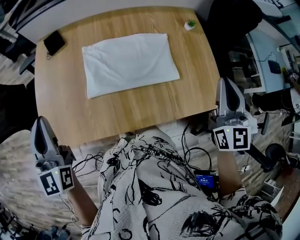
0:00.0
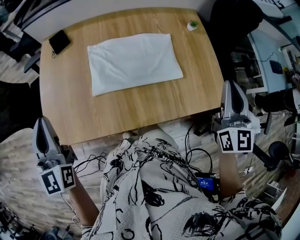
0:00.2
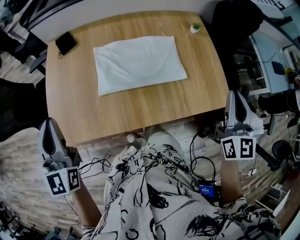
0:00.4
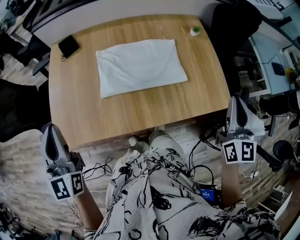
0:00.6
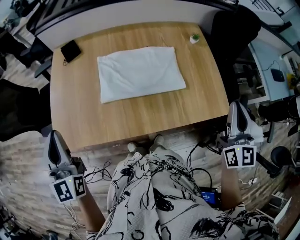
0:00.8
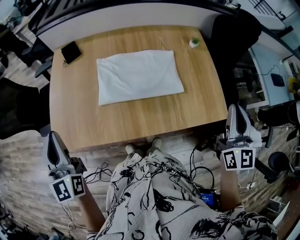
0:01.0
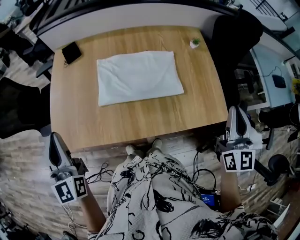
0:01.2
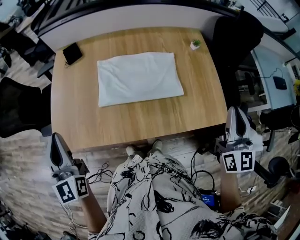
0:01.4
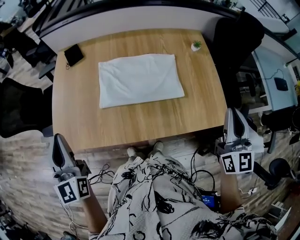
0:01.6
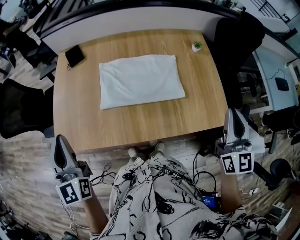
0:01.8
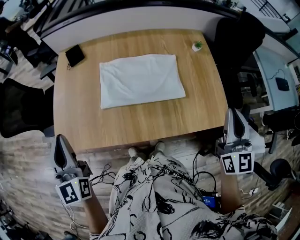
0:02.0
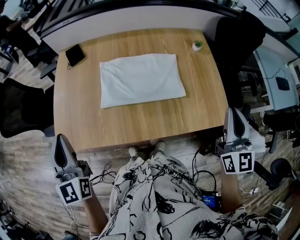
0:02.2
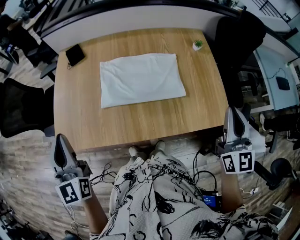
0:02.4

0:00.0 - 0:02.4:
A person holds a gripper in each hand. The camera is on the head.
0:00.0 - 0:01.2: The grippers both shift backward by roughly 10 cm.
0:01.2 - 0:02.4: The grippers stay close to where they were, moving slightly.

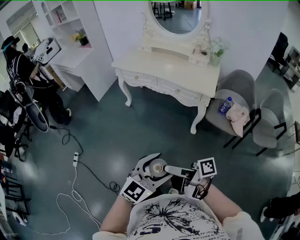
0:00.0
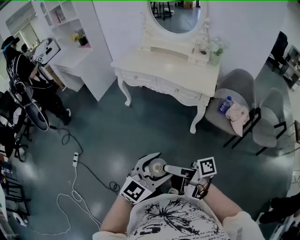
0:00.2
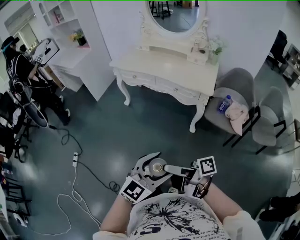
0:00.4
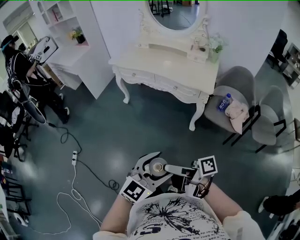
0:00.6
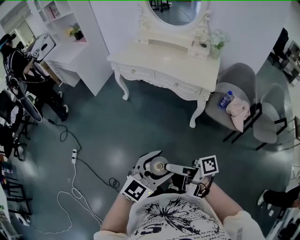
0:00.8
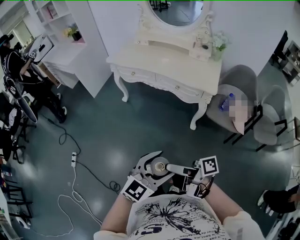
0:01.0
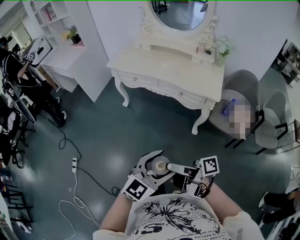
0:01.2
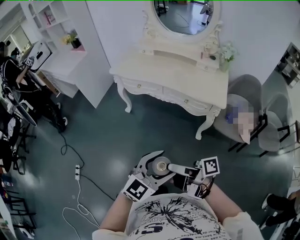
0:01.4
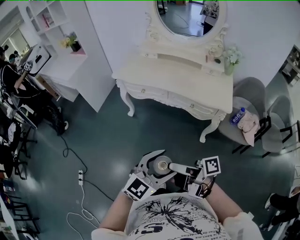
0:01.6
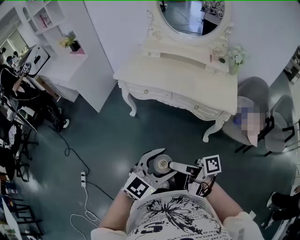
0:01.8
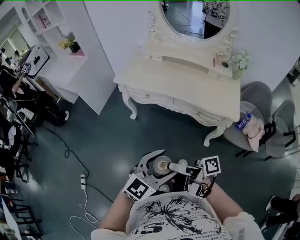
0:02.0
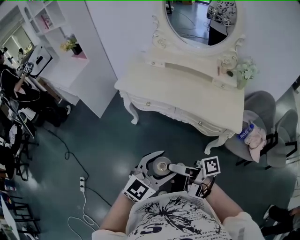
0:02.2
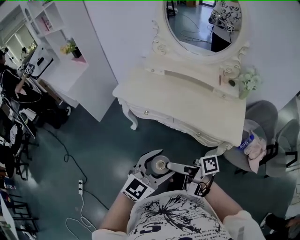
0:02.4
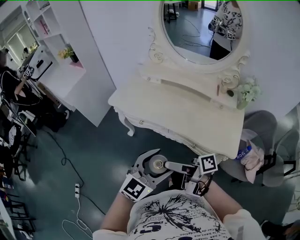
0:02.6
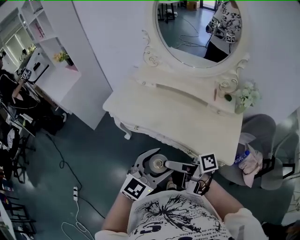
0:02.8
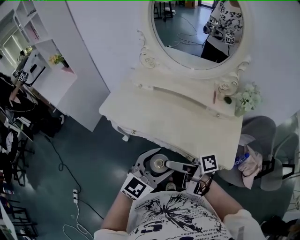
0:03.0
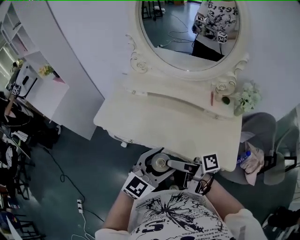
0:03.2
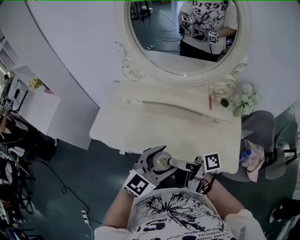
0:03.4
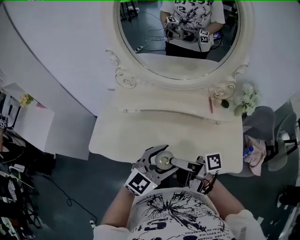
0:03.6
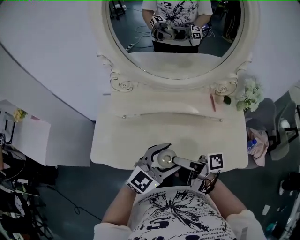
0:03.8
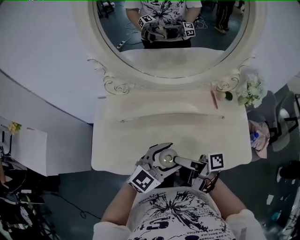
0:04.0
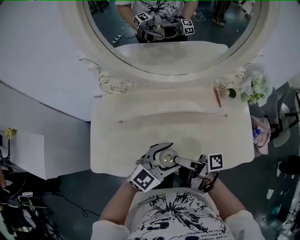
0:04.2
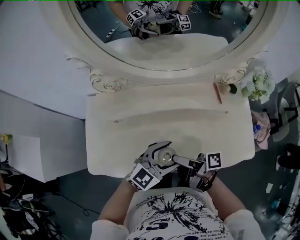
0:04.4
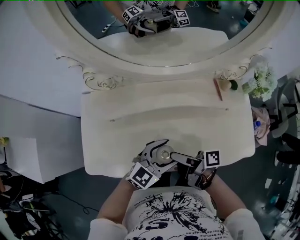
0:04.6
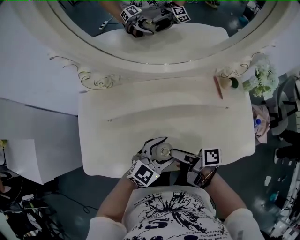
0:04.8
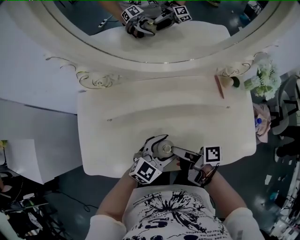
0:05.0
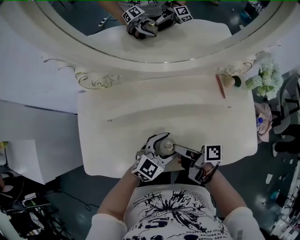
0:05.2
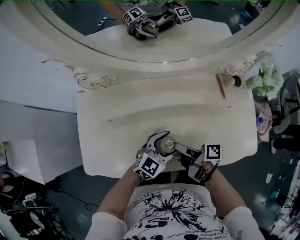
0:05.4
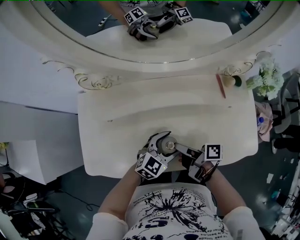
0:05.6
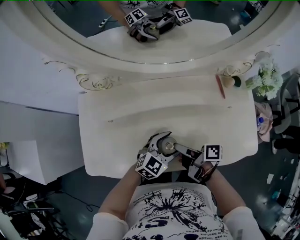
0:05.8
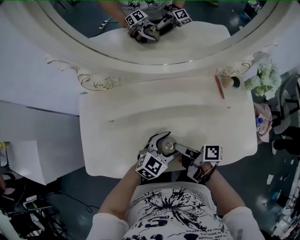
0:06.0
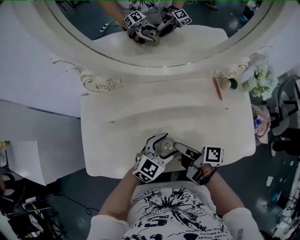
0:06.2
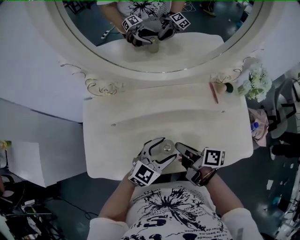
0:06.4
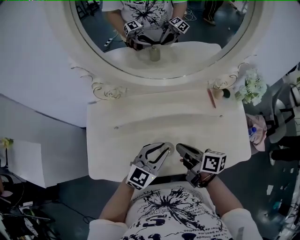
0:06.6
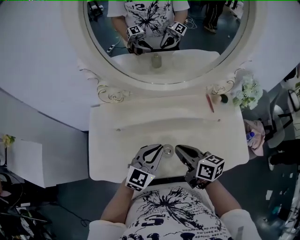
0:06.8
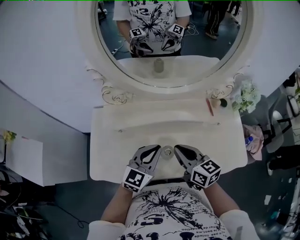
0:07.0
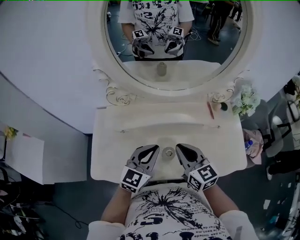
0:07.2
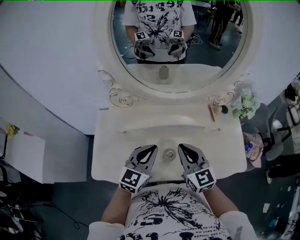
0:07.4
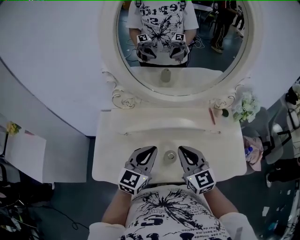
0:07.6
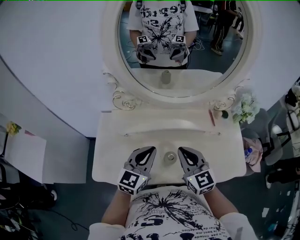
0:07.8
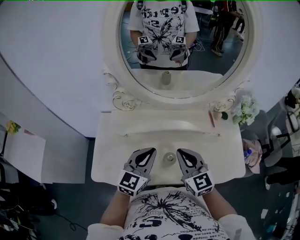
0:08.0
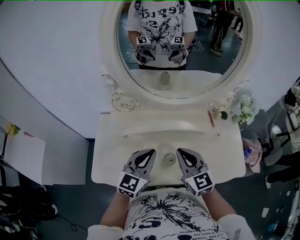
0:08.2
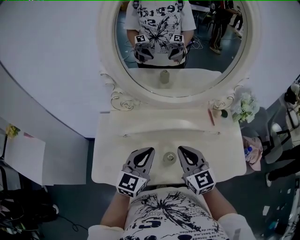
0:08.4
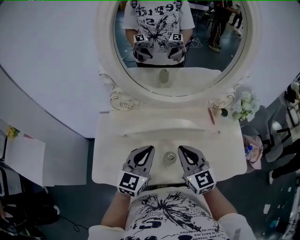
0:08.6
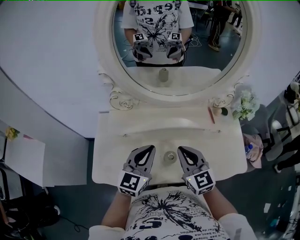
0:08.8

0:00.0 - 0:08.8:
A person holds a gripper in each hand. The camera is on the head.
0:00.0 - 0:01.4: The left gripper changes place by roughly 15 cm.
0:01.4 - 0:03.0: The left gripper changes place by about 40 cm.
0:03.0 - 0:04.4: The left gripper ends up some 30 cm from where it was, and rotates approximately 40 degrees.
0:04.4 - 0:05.8: The left gripper travels downward by approximately 10 cm.
0:05.8 - 0:07.4: The left gripper is displaced upward by some 20 cm, changes its angle by roughly 30 degrees, and closes up.

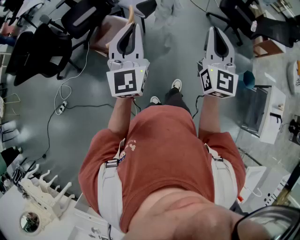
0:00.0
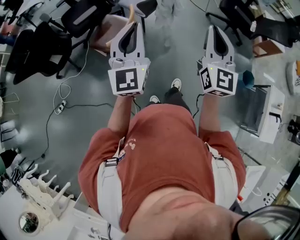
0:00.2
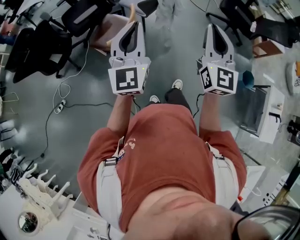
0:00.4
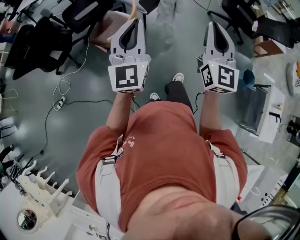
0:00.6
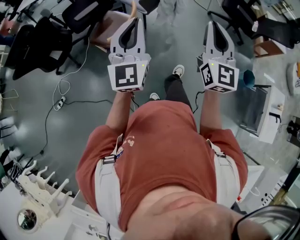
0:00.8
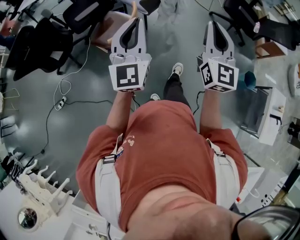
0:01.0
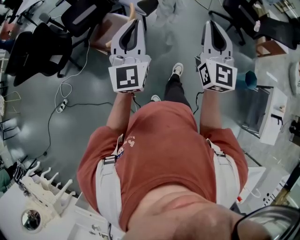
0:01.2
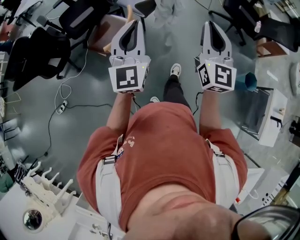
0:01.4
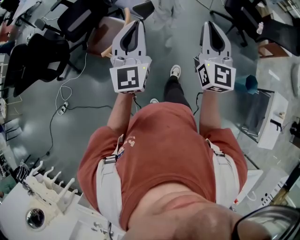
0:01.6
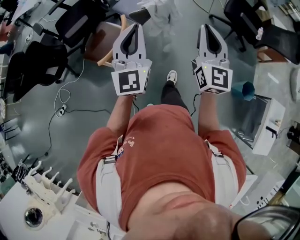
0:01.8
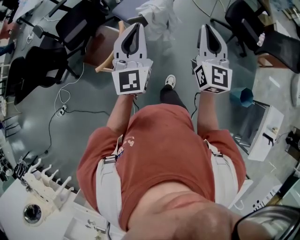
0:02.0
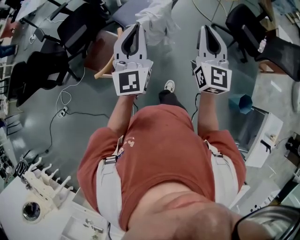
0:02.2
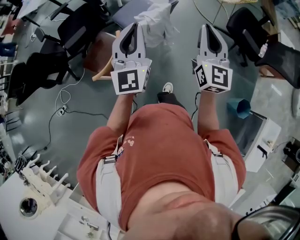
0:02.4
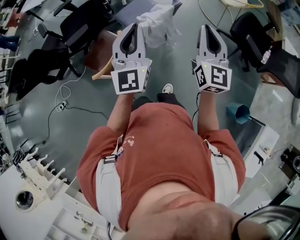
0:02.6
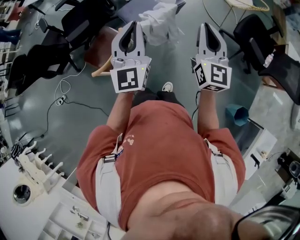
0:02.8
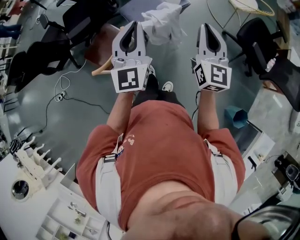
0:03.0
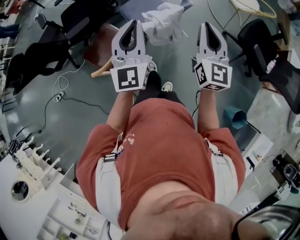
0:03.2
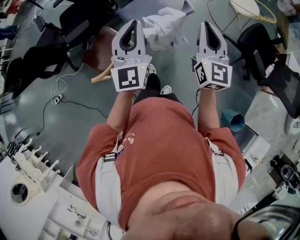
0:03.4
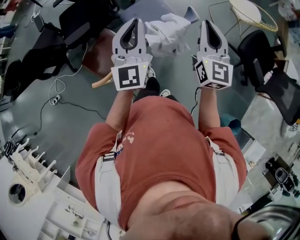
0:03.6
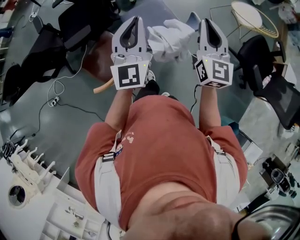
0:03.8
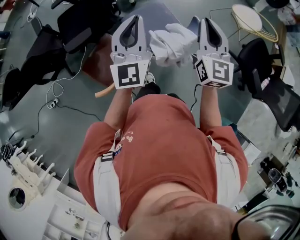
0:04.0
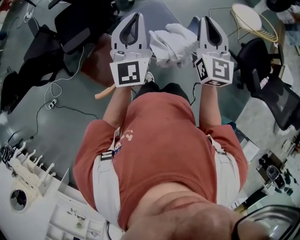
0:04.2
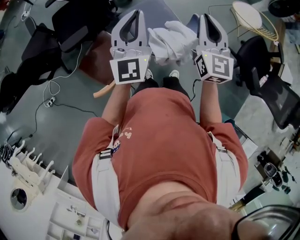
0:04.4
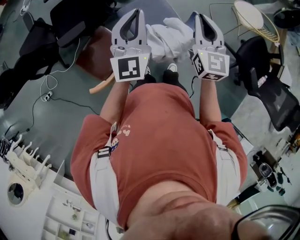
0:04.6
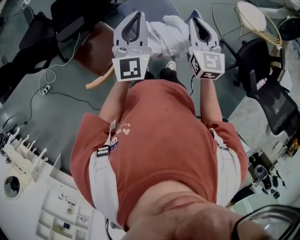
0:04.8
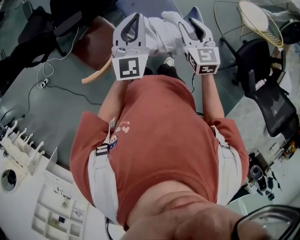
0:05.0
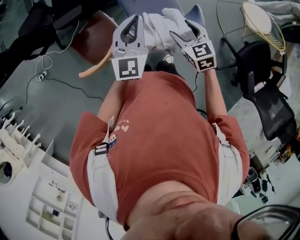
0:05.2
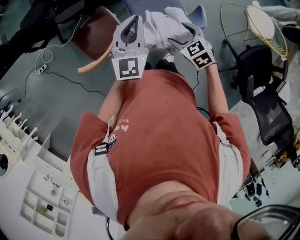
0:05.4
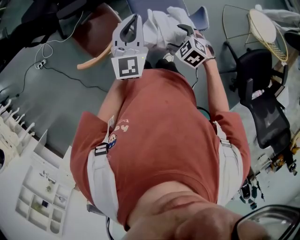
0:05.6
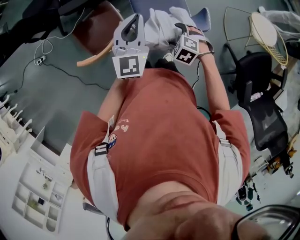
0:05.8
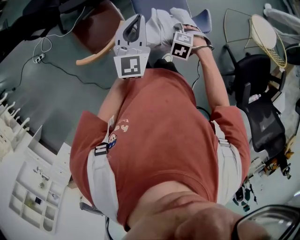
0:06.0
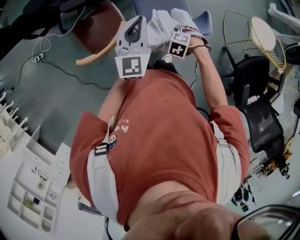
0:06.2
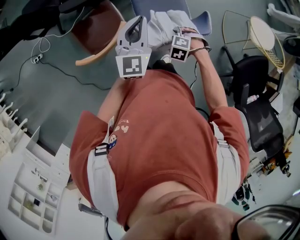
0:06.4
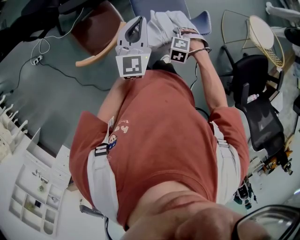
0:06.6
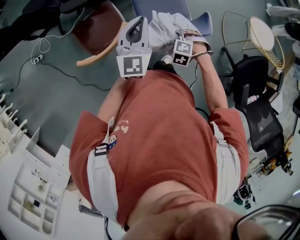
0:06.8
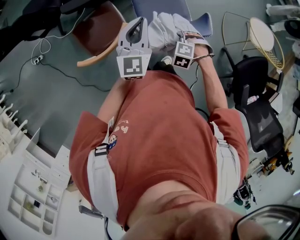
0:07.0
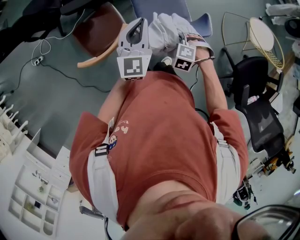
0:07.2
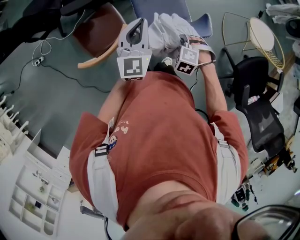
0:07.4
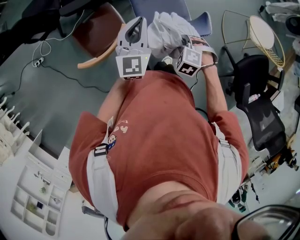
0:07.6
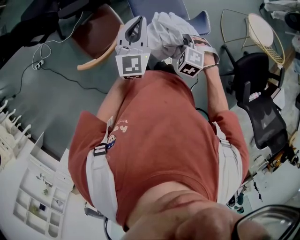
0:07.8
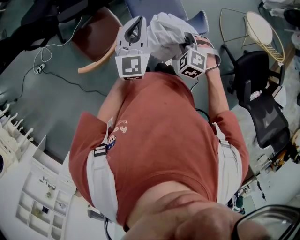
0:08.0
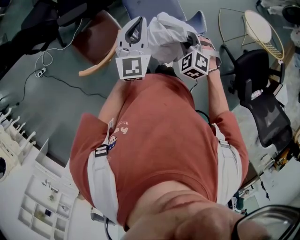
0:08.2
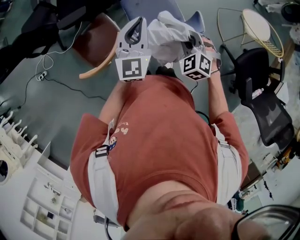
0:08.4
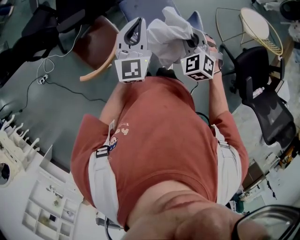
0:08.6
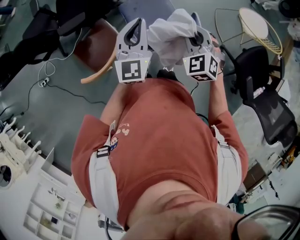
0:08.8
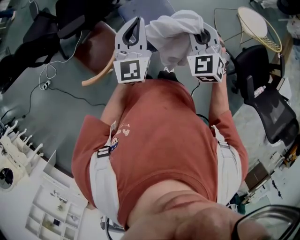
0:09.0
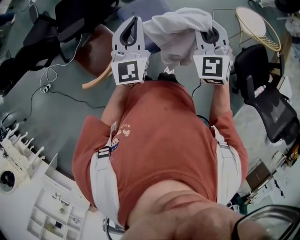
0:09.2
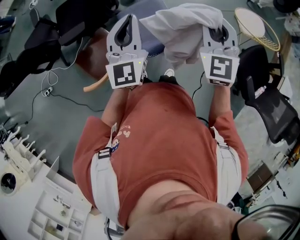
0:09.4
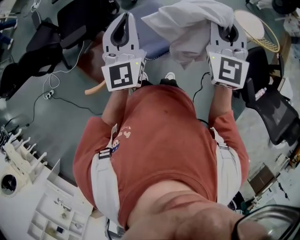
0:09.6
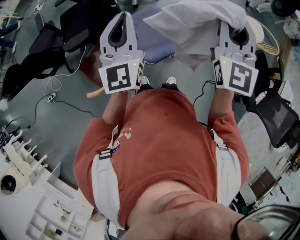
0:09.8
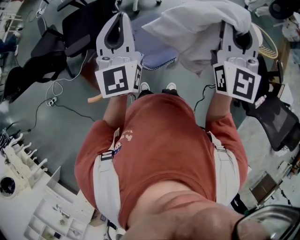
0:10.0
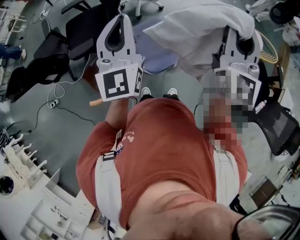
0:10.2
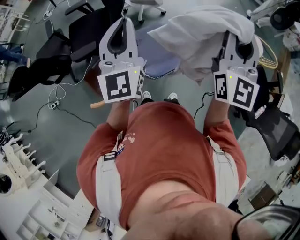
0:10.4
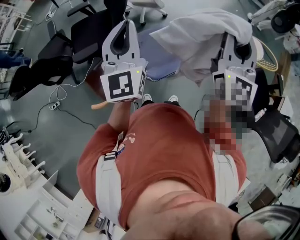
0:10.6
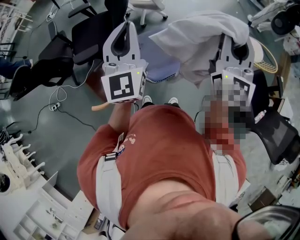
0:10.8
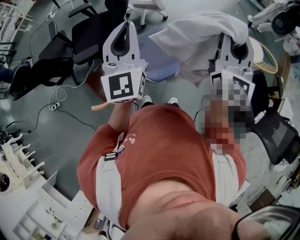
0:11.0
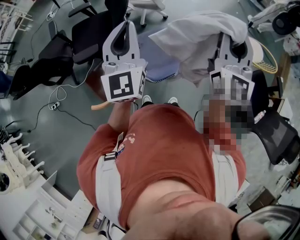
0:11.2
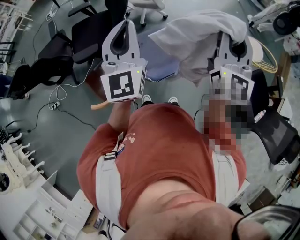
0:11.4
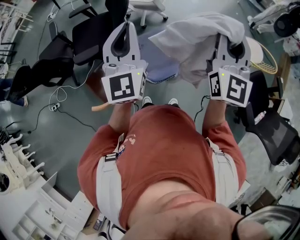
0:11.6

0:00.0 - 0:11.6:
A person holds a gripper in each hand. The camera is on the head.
0:00.0 - 0:01.4: The two grippers go approximately 5 cm forward.
0:01.4 - 0:02.8: The left gripper heads forward and to the right, covering some 30 cm. Meanwhile the right gripper is displaced forward by approximately 30 cm.
0:02.8 - 0:04.4: The two grippers go roughly 30 cm forward and to the left.
0:04.4 - 0:05.8: The left gripper moves downward, about 10 cm; the right gripper shifts roughly 30 cm downward, tips its fingers downward by approximately 70 degrees, and opens up.
0:05.8 - 0:07.2: The right gripper closes.
0:07.2 - 0:08.8: The left gripper moves roughly 5 cm. The right gripper goes roughly 20 cm upward, and angles its fingers upward, by about 40 degrees.
0:08.8 - 0:10.2: The right gripper shifts roughly 30 cm upward, and points its fingers roughly 50 degrees further upward; the left gripper is displaced upward by roughly 20 cm.
0:10.2 - 0:11.6: There are only small adjustments of the grippers.

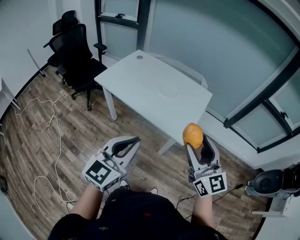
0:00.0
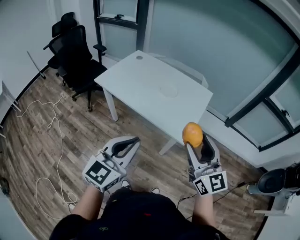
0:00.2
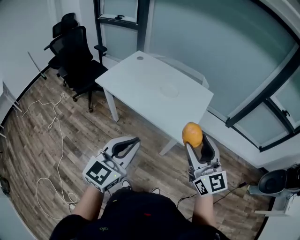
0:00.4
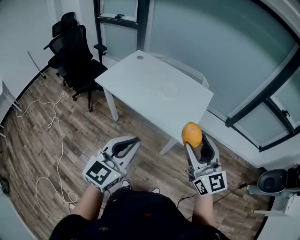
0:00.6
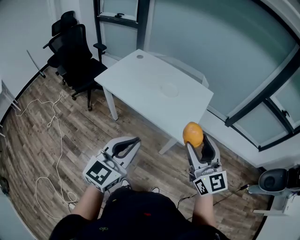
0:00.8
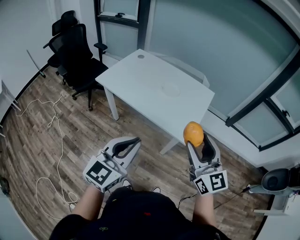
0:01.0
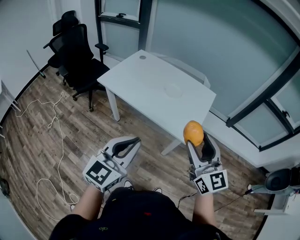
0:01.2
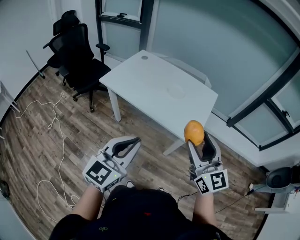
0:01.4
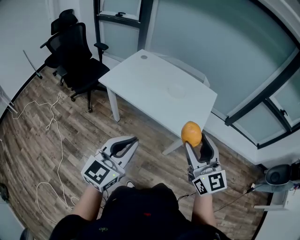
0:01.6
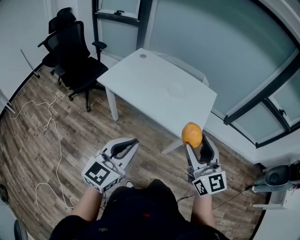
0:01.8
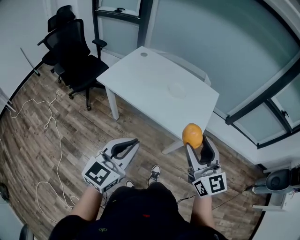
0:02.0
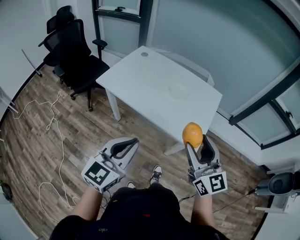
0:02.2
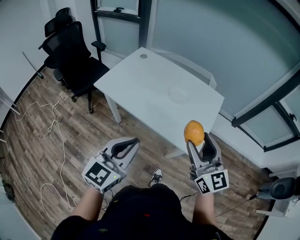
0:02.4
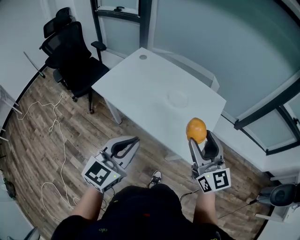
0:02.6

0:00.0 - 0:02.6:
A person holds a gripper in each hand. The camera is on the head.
0:00.0 - 0:01.2: There are only small adjustments of the grippers.
0:01.2 - 0:02.6: Both grippers travel together forward, some 20 cm.
